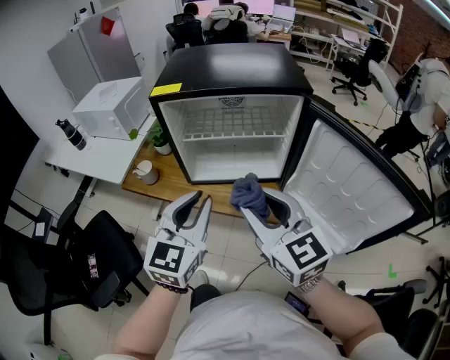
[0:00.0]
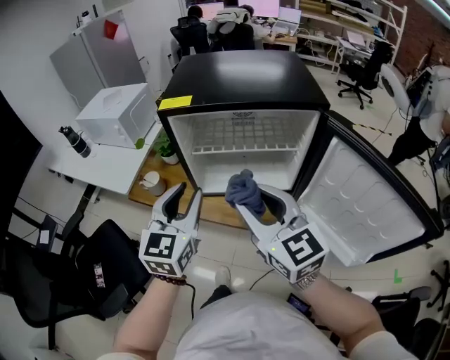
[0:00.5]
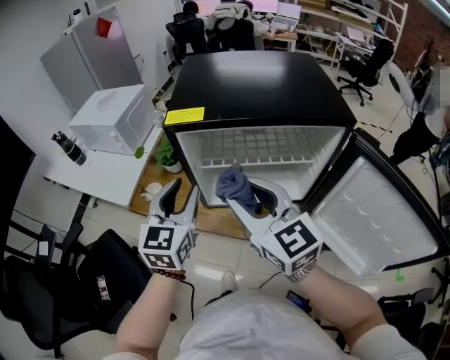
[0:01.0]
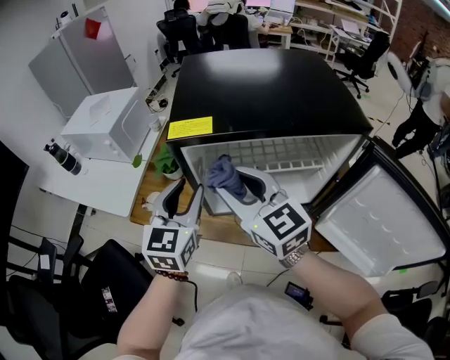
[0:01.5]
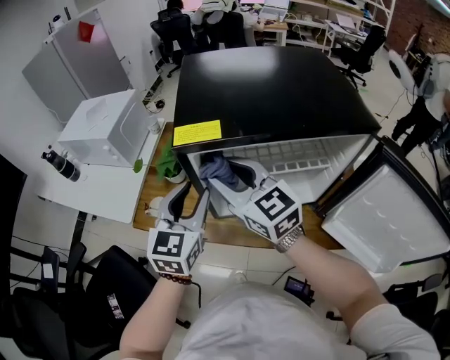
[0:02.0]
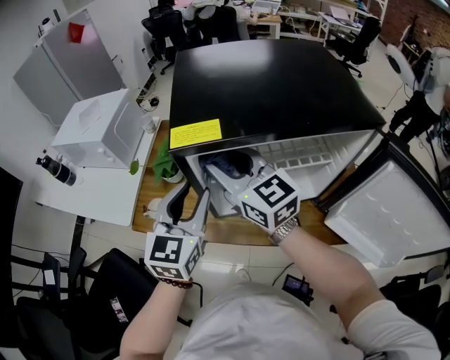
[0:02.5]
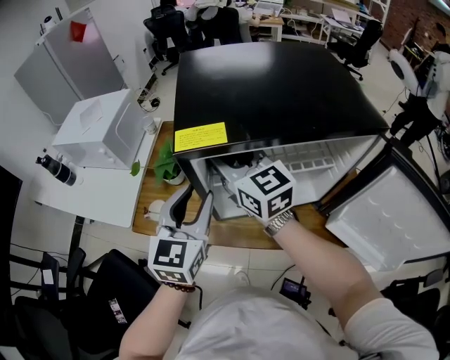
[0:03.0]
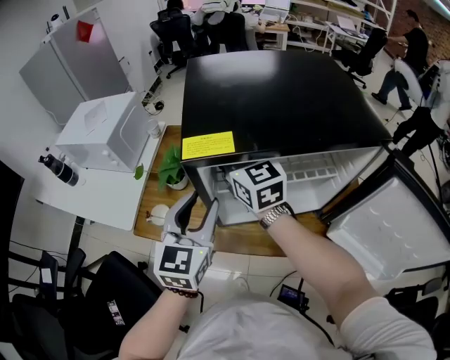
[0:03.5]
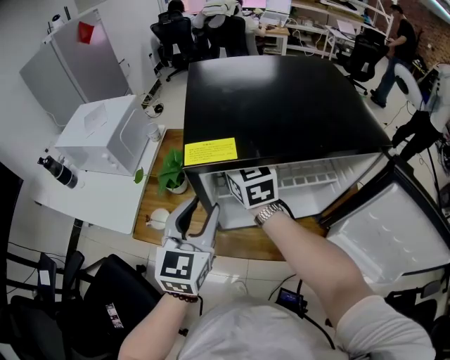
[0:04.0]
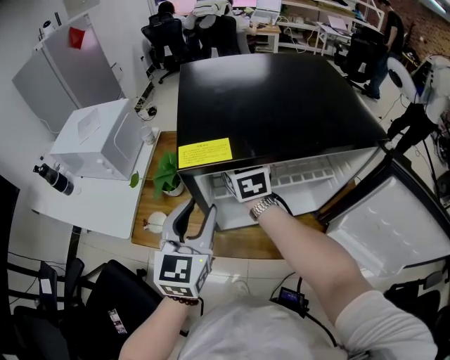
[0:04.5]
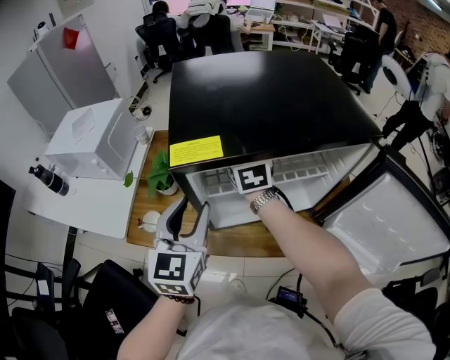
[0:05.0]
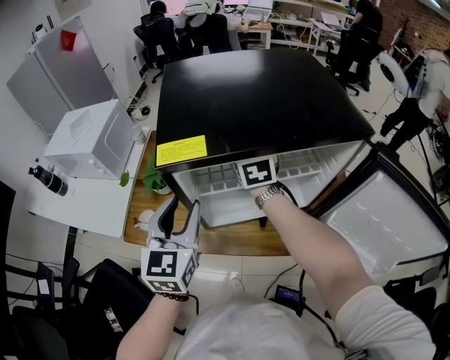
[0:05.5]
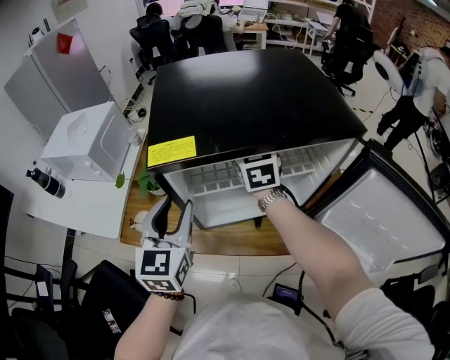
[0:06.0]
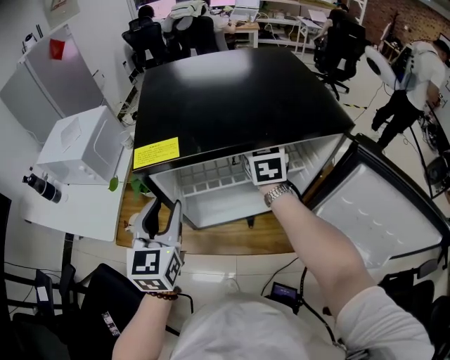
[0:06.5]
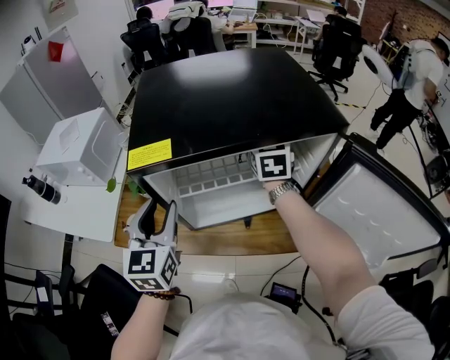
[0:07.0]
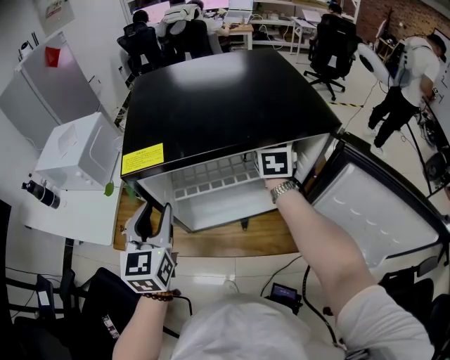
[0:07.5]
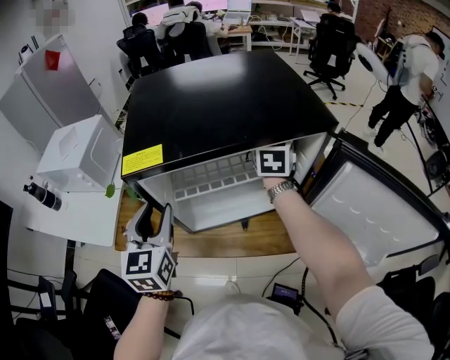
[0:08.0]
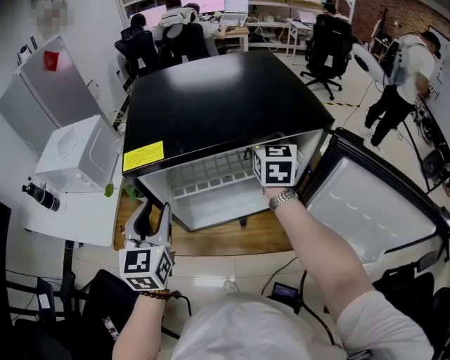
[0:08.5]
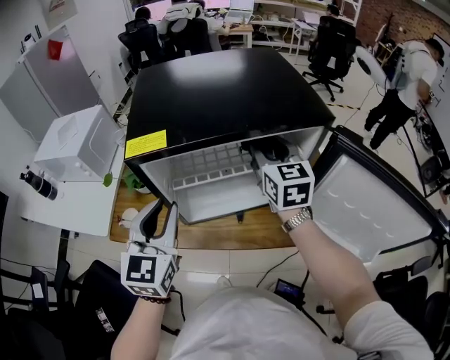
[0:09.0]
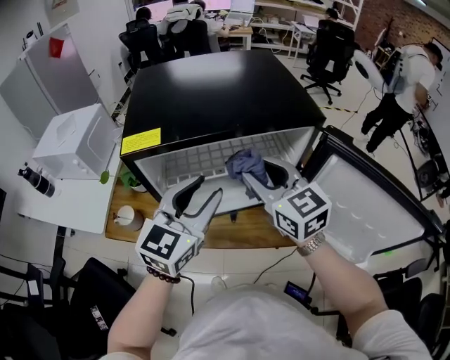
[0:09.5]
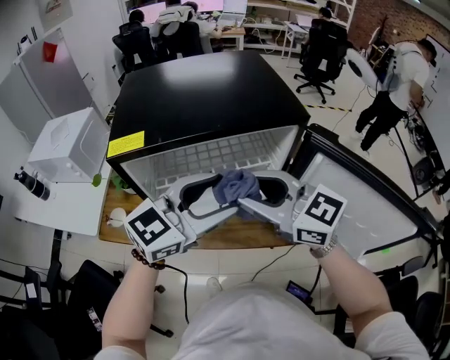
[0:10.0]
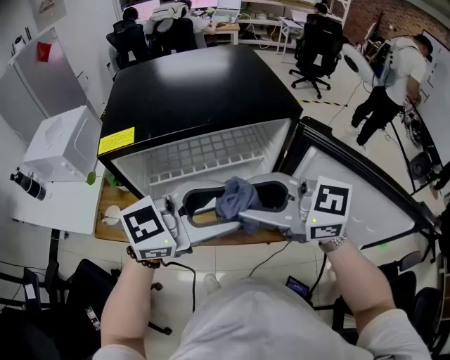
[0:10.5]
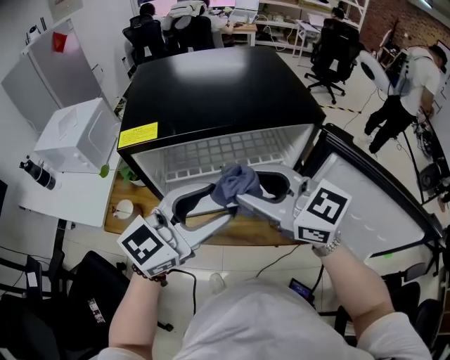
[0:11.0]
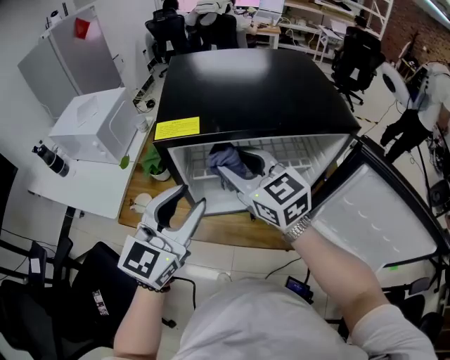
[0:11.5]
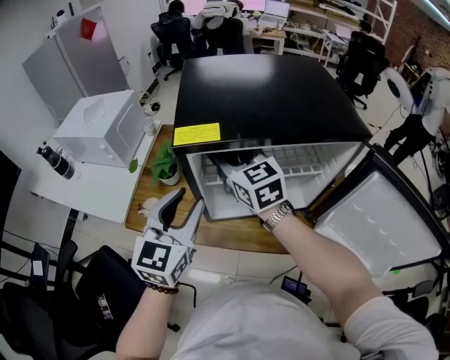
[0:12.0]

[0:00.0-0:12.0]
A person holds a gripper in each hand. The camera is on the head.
0.0 to 2.0 s: The right gripper shifts approximately 30 cm forward and to the left. Meanwhile the left gripper travels forward by roughly 25 cm.
2.0 to 4.0 s: The right gripper is displaced forward by some 15 cm.
4.0 to 6.0 s: The right gripper shifts roughly 10 cm to the right.
6.0 to 8.0 s: The right gripper travels to the right by about 15 cm, and swivels approximately 20 degrees.
8.0 to 10.0 s: The left gripper goes about 20 cm to the right, changes its angle by roughly 60 degrees, and opens up. The right gripper is displaced backward by roughly 25 cm, and swivels about 60 degrees.
10.0 to 12.0 s: The right gripper changes place by some 25 cm. Meanwhile the left gripper shifts by roughly 20 cm, rotates some 50 degrees, and closes up.

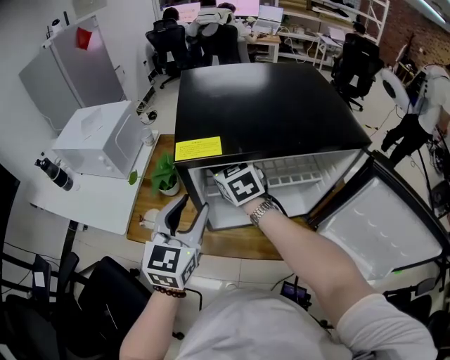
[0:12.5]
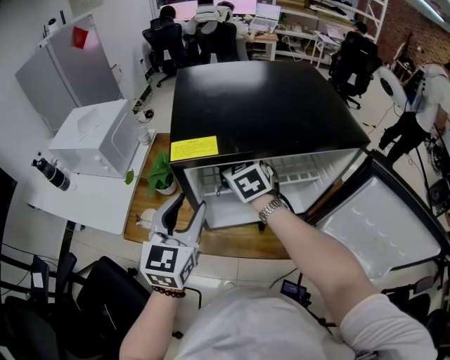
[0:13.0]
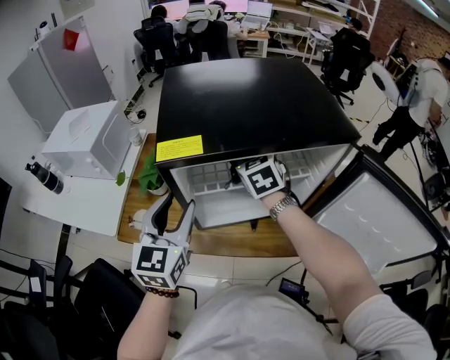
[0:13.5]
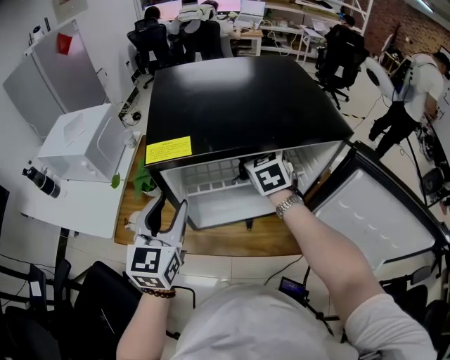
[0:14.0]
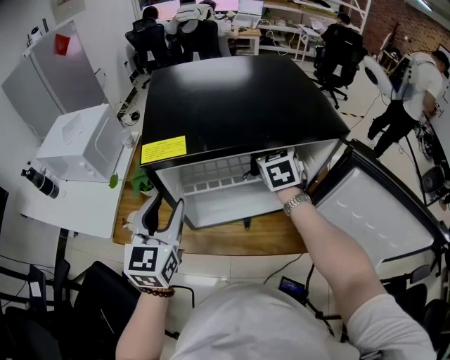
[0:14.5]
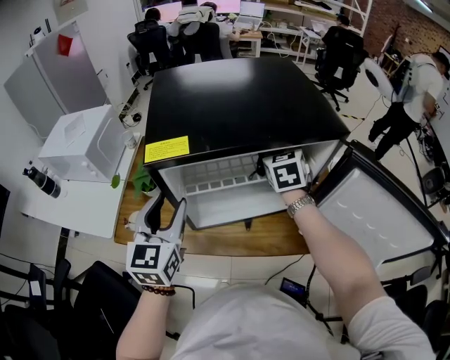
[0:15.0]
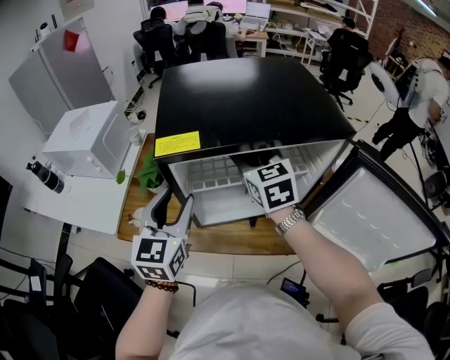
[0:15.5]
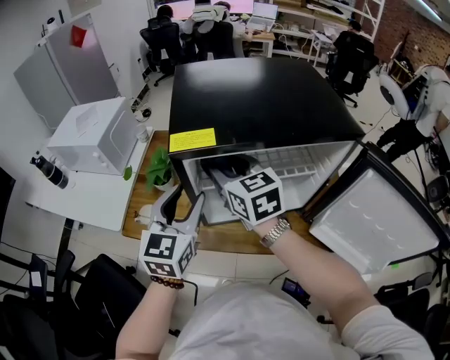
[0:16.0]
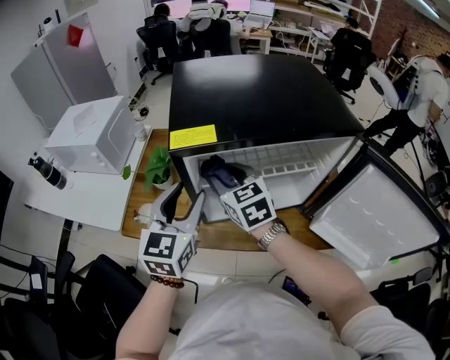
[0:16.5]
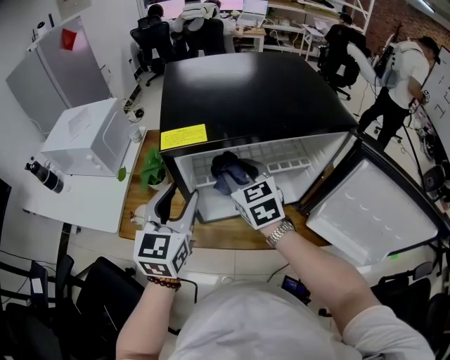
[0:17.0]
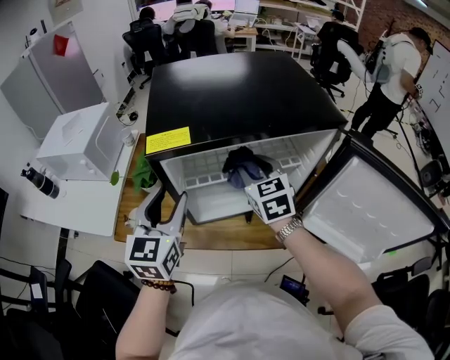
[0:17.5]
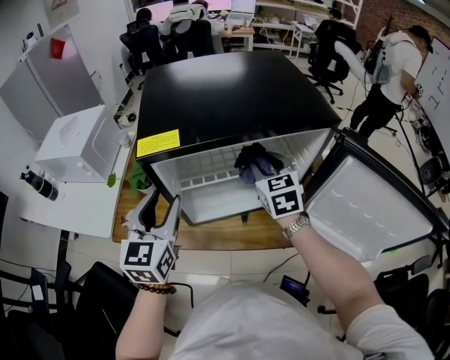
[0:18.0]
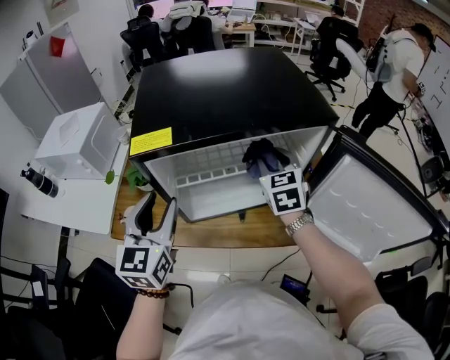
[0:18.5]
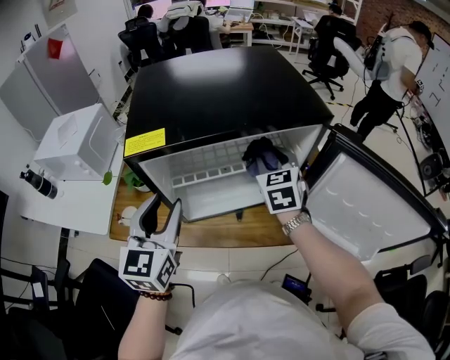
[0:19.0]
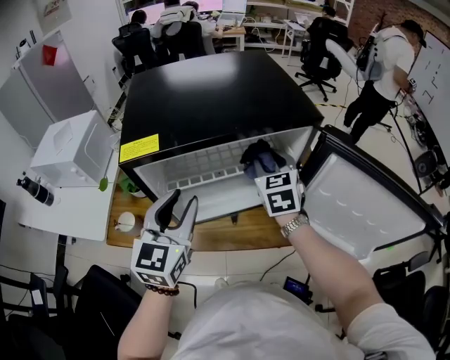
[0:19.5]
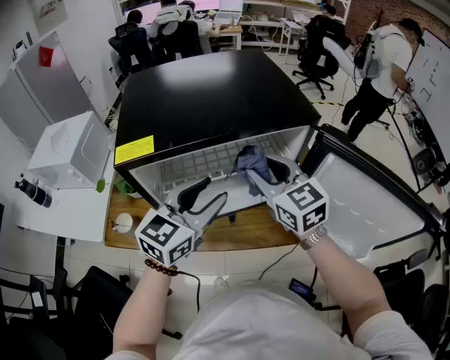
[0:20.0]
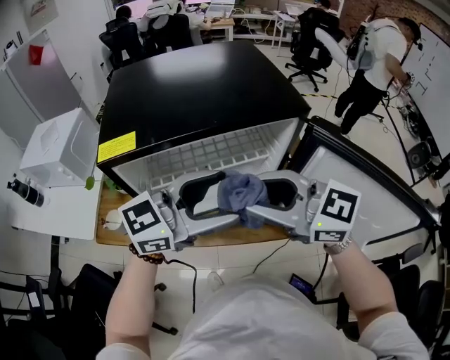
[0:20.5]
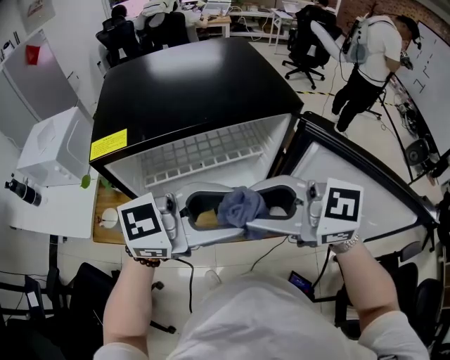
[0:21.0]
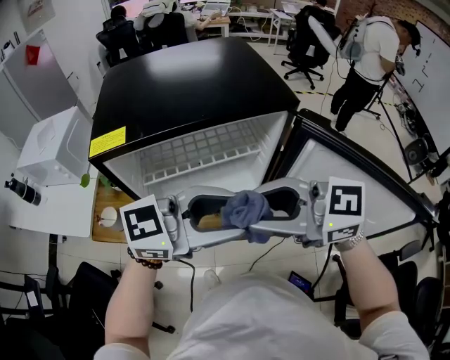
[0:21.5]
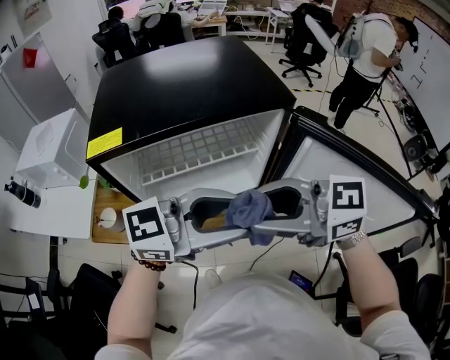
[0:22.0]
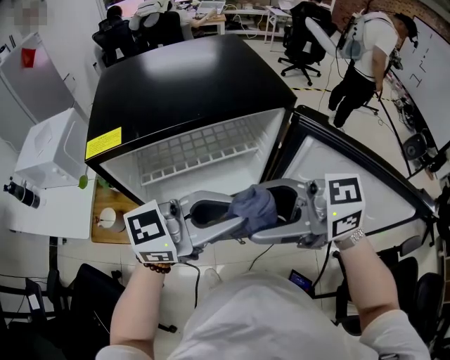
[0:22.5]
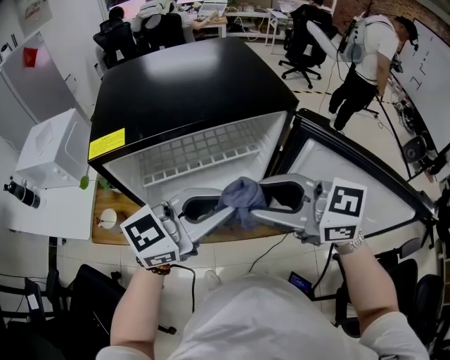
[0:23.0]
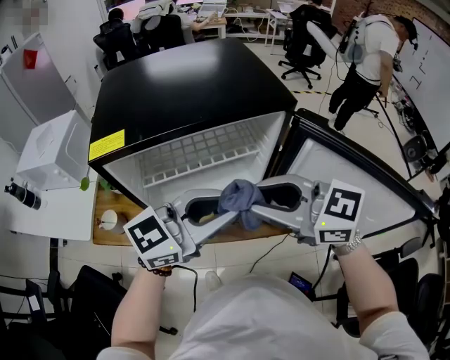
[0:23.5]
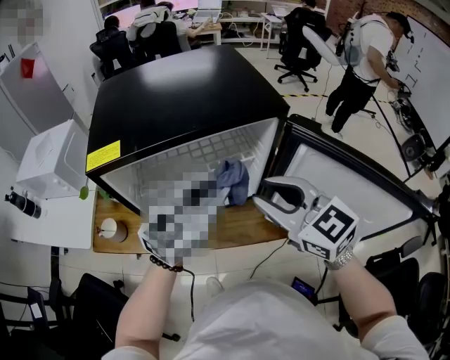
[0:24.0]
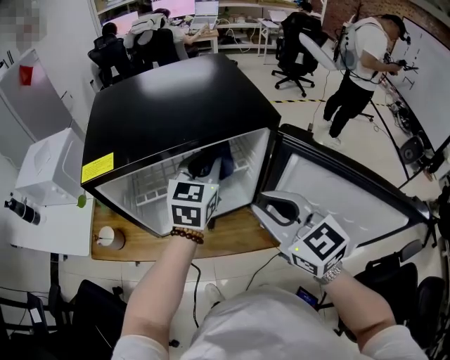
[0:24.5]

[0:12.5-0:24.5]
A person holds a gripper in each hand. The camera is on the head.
12.5 to 14.5 s: The right gripper heads to the right, covering some 20 cm, and swivels some 30 degrees.
14.5 to 16.5 s: The right gripper is displaced to the left and backward by some 20 cm, and rotates roughly 30 degrees.
16.5 to 18.5 s: The right gripper moves to the right, about 20 cm, and changes its angle by roughly 20 degrees.
18.5 to 20.5 s: The left gripper moves roughly 20 cm, and turns by some 60 degrees; the right gripper ends up roughly 20 cm from where it was, and changes its angle by approximately 60 degrees.
20.5 to 22.5 s: The left gripper changes place by some 5 cm, and closes its fingers, while the right gripper changes place by about 5 cm, swivels roughly 20 degrees, and opens.
22.5 to 24.5 s: The left gripper moves roughly 20 cm, and rotates some 60 degrees. Meanwhile the right gripper shifts by some 10 cm, swivels approximately 50 degrees, and closes its fingers.

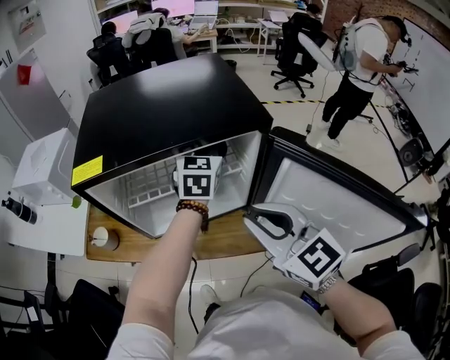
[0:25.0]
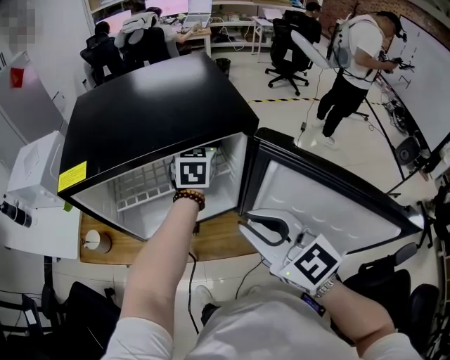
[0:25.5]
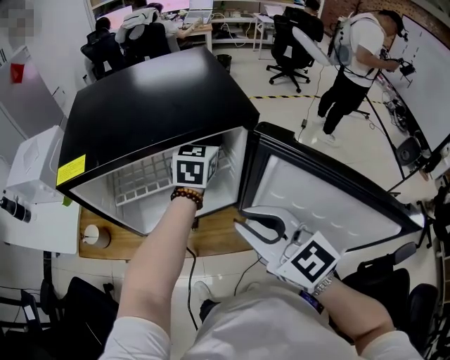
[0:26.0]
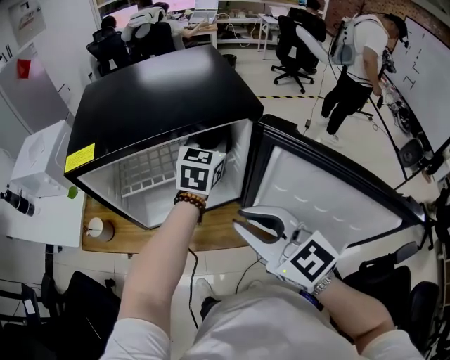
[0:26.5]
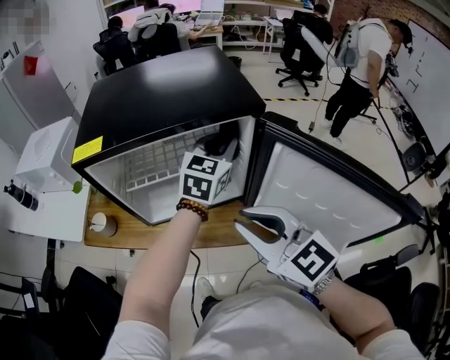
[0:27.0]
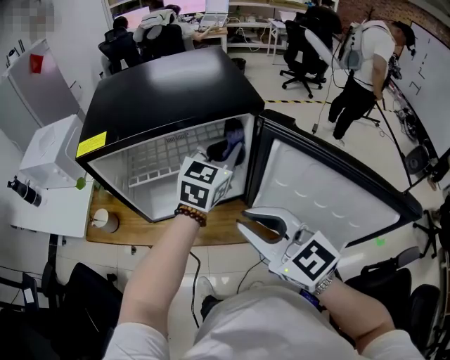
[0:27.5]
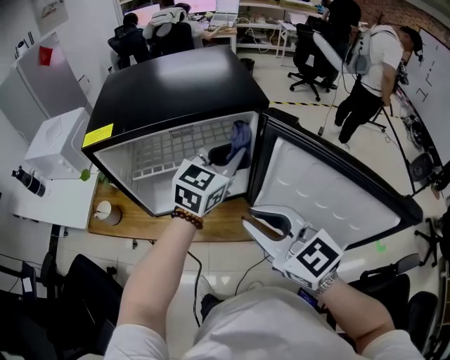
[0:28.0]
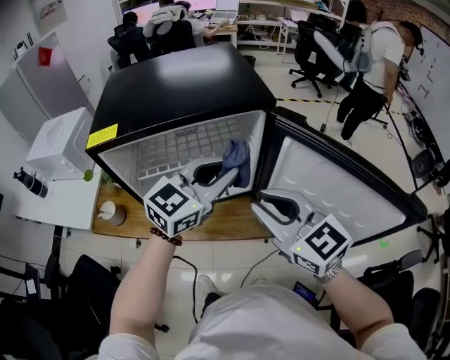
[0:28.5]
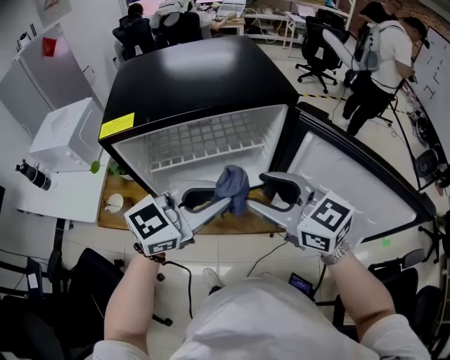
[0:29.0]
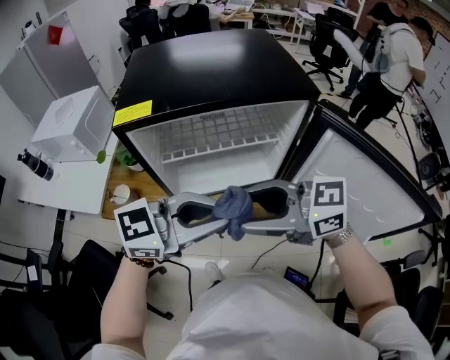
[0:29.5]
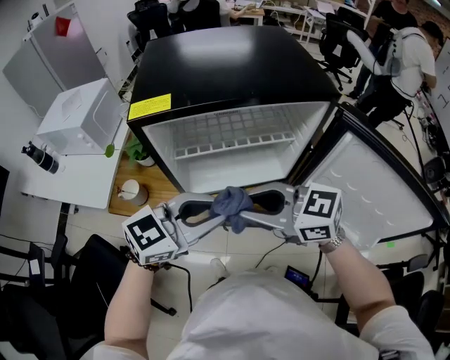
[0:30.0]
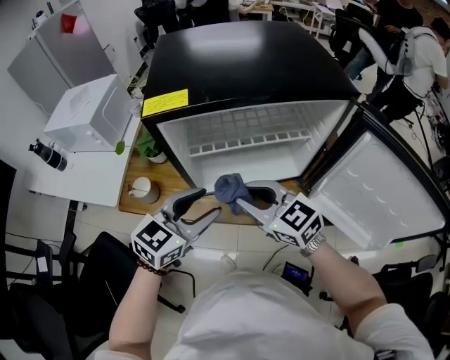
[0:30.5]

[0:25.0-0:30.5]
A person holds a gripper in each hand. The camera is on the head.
25.0 to 27.0 s: The left gripper goes some 10 cm backward.
27.0 to 28.5 s: The left gripper heads backward, covering roughly 10 cm, and turns by some 20 degrees.
28.5 to 30.5 s: The right gripper shifts by roughly 20 cm, and opens, then closes again, while the left gripper ends up some 25 cm from where it was, and opens up.
